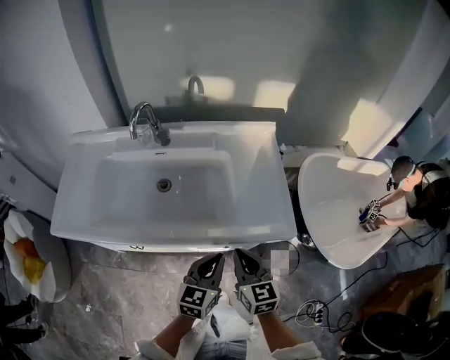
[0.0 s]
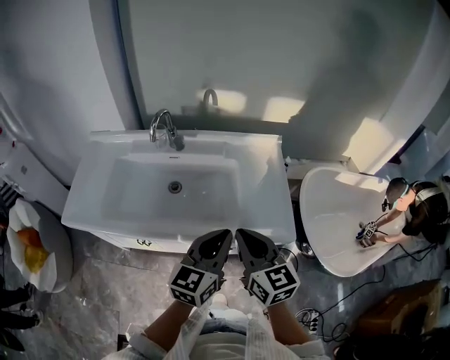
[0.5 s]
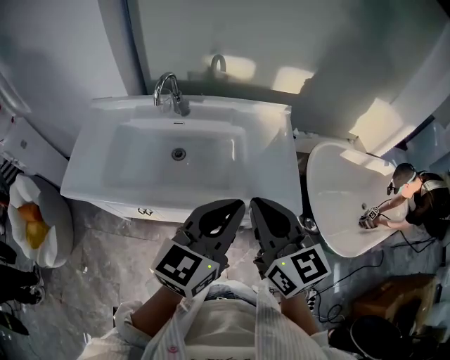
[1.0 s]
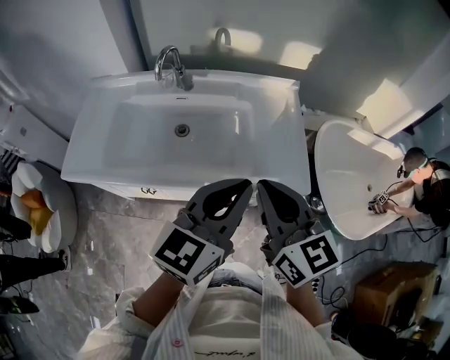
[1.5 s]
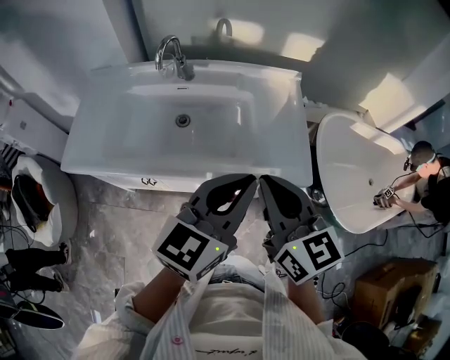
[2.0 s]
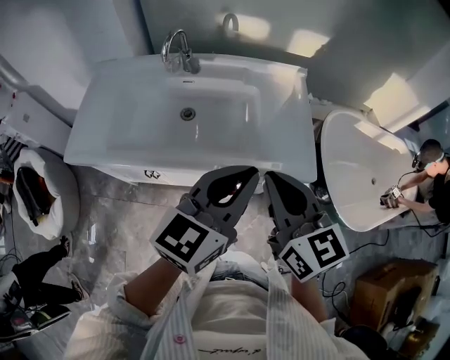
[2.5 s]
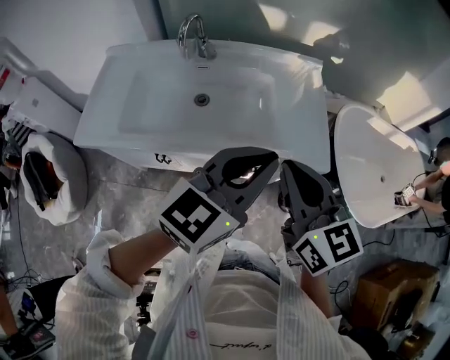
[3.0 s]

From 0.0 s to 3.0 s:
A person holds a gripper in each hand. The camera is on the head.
From 0.0 s to 1.5 s: The grippers both shift upward by some 20 cm.
From 1.5 s to 3.0 s: There are only small adjustments of the grippers.

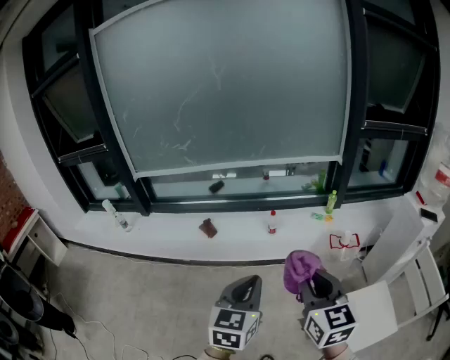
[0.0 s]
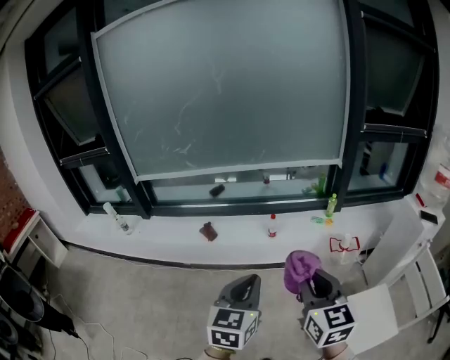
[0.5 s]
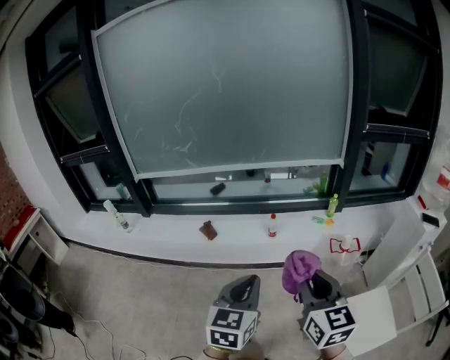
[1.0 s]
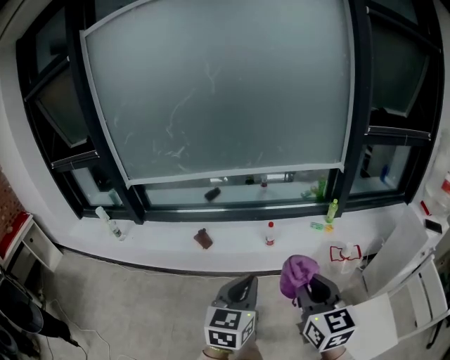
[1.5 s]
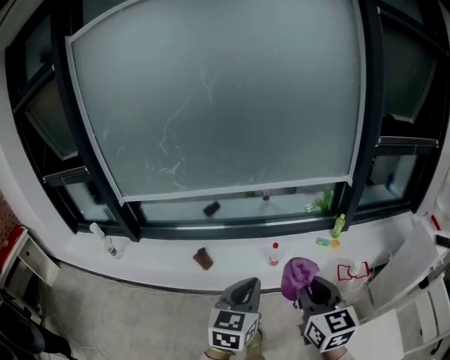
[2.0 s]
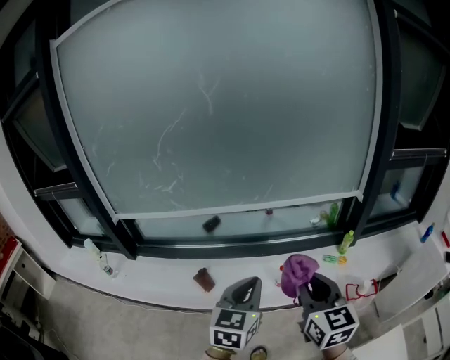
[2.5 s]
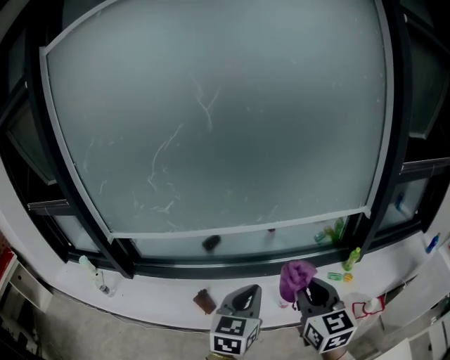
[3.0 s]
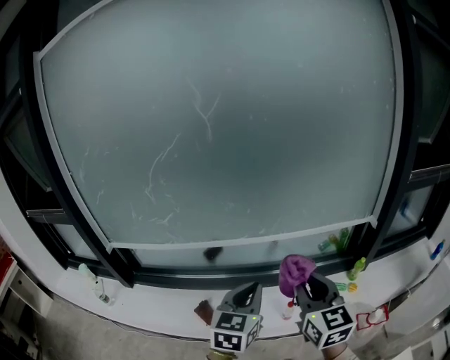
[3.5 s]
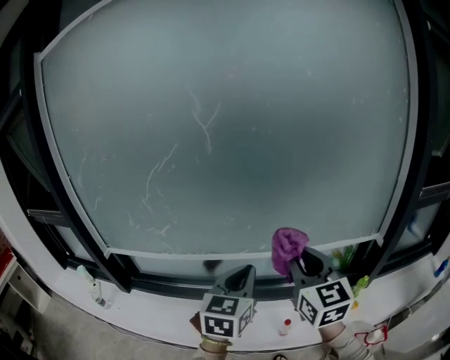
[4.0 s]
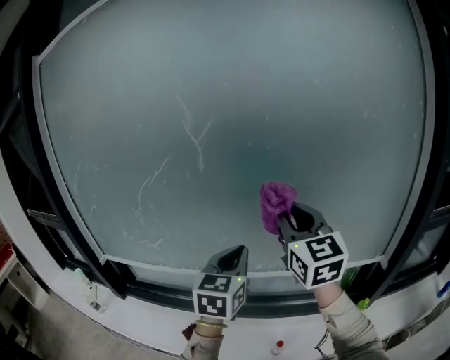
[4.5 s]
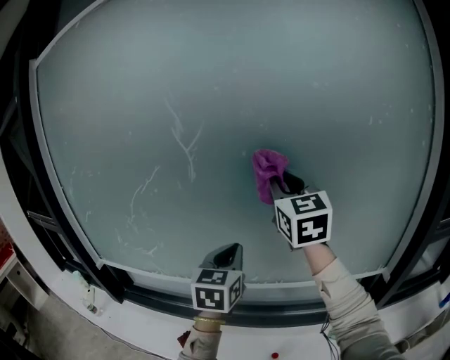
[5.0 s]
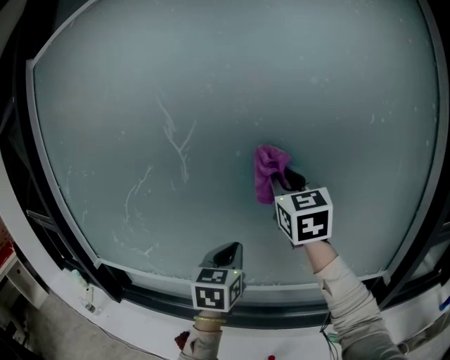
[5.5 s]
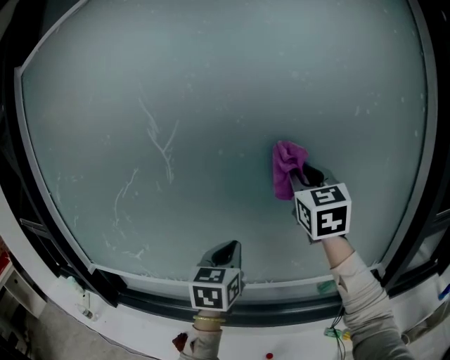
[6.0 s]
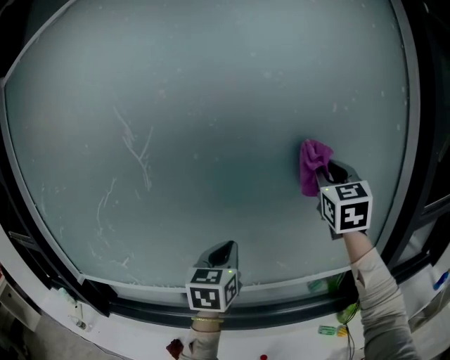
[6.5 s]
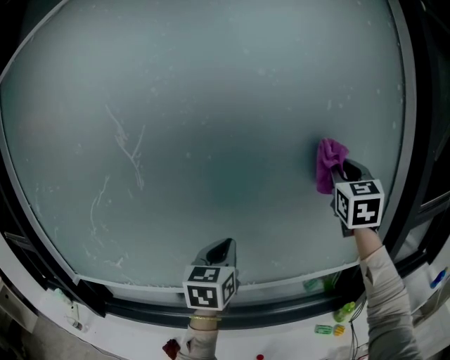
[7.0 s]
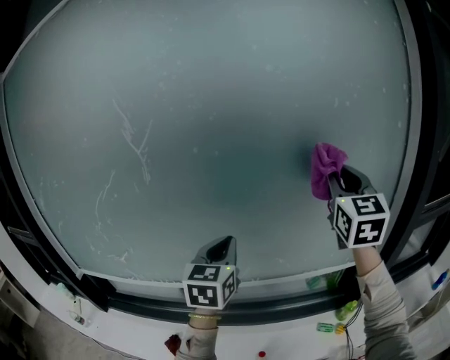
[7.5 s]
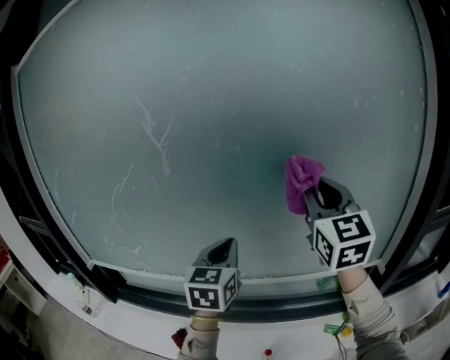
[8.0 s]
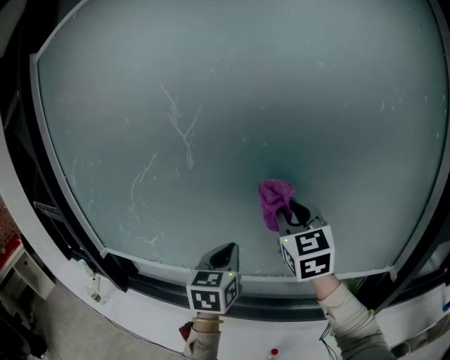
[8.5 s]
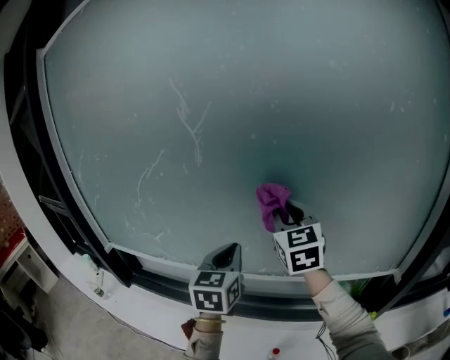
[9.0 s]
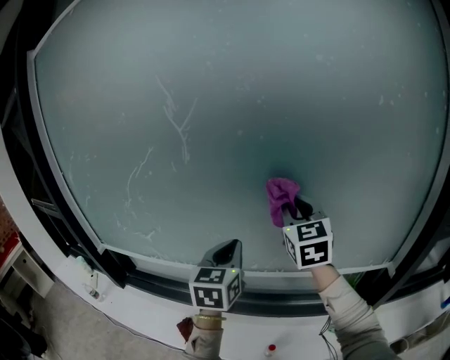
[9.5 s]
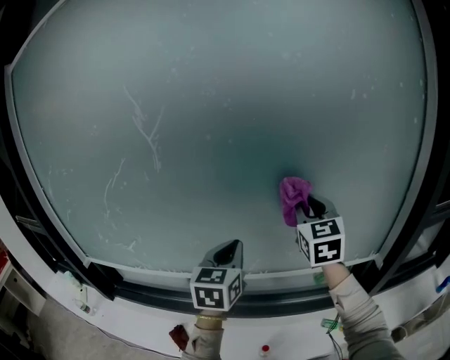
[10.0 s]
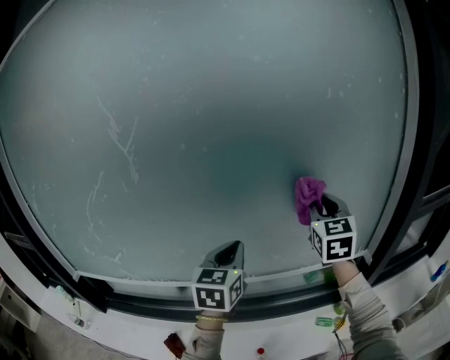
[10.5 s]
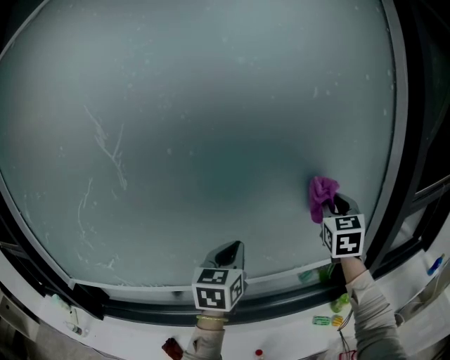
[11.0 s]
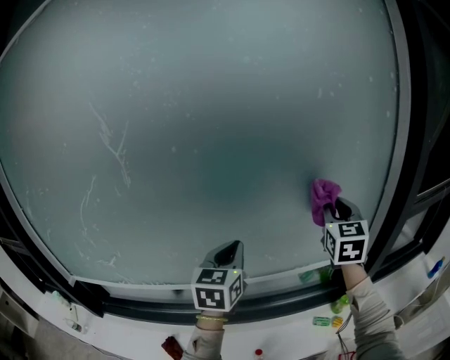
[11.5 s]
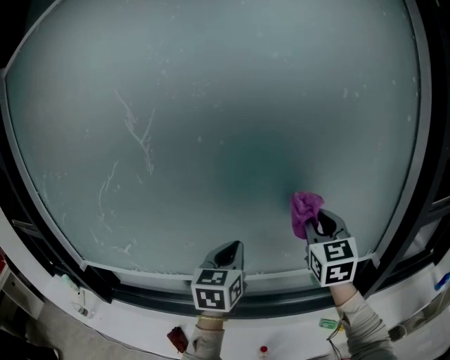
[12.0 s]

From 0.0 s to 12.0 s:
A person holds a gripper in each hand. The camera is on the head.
From 0.0 s to 2.0 s: The two grippers go about 20 cm forward.
From 2.0 s to 4.0 s: Both grippers are carried forward, about 40 cm.
From 4.0 s to 6.0 s: The right gripper goes roughly 35 cm forward, upward and to the right; the left gripper is displaced forward by about 20 cm.
From 6.0 s to 8.0 s: The right gripper heads backward, covering approximately 5 cm, and goes to the right and returns, some 20 cm each way.
From 8.0 s to 10.0 s: The right gripper travels downward and forward by about 10 cm, and reaches some 15 cm to the left, then returns; the left gripper goes to the left and returns, some 5 cm each way.
From 10.0 s to 12.0 s: The right gripper goes to the right and returns, approximately 15 cm each way.

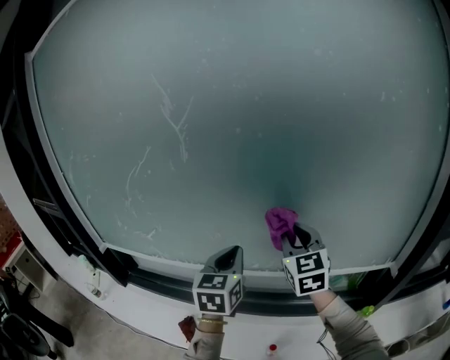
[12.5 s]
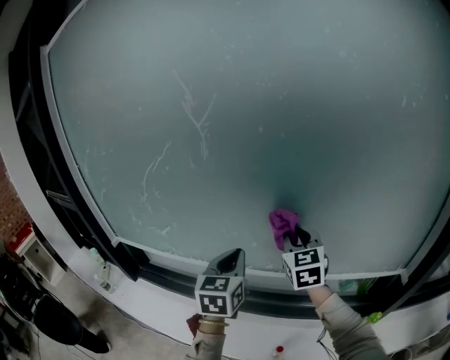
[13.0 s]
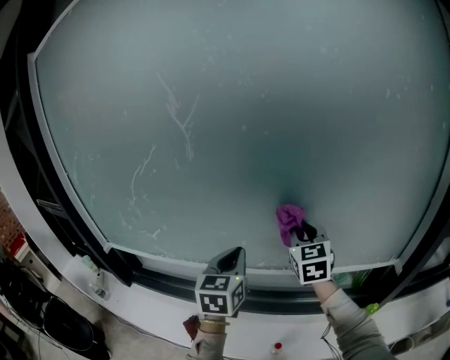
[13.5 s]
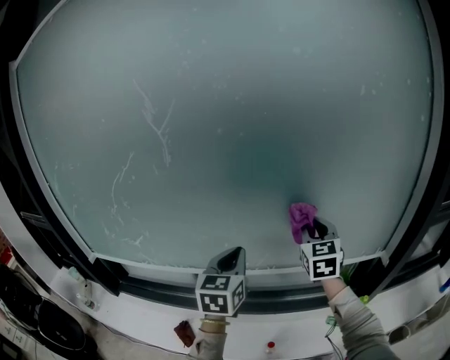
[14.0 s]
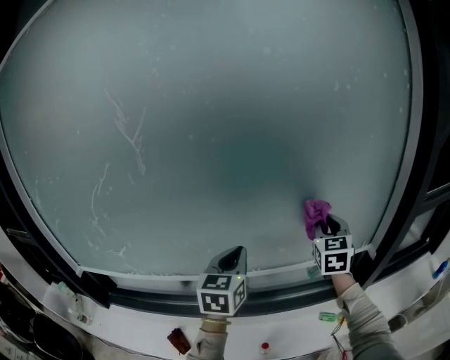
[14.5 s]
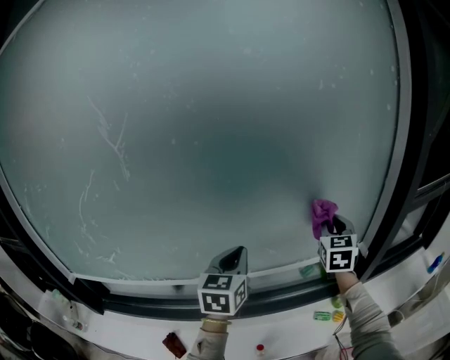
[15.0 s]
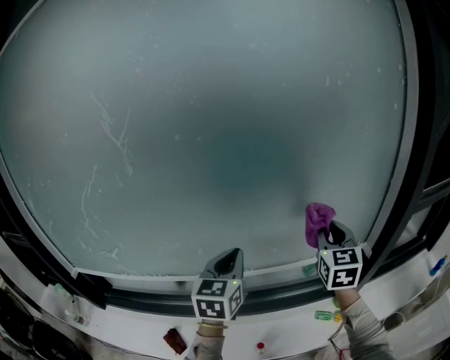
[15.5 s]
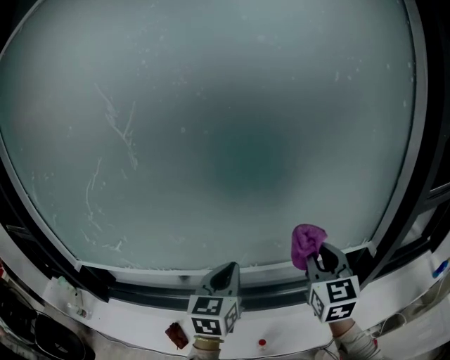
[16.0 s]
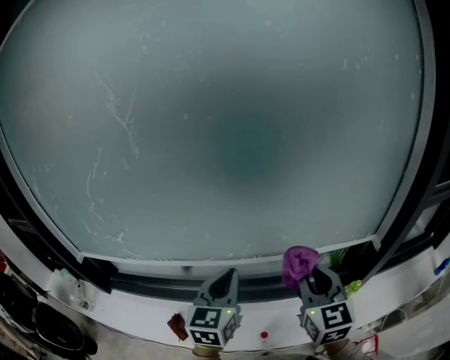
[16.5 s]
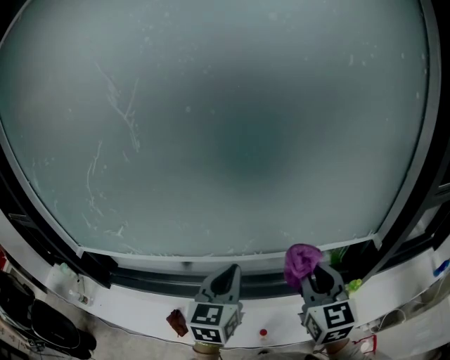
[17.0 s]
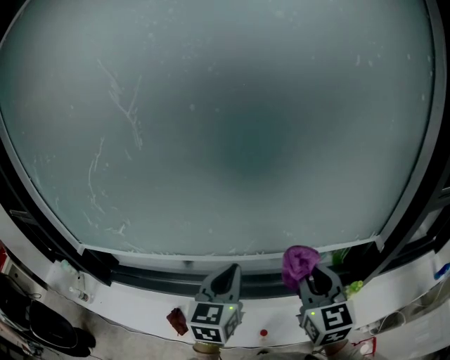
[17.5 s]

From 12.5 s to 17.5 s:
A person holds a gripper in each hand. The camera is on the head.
From 12.5 s to 15.0 s: The right gripper changes place by about 25 cm, and swivels approximately 30 degrees, while the left gripper ends up some 15 cm from where it was.
From 15.0 s to 17.5 s: The right gripper moves backward and to the left, roughly 20 cm, and swivels about 30 degrees. Meanwhile the left gripper is displaced backward by approximately 10 cm.

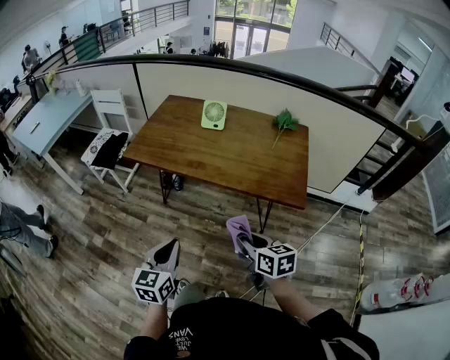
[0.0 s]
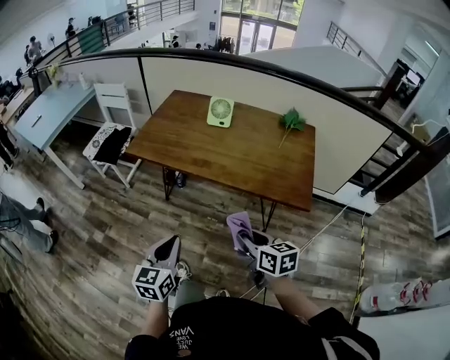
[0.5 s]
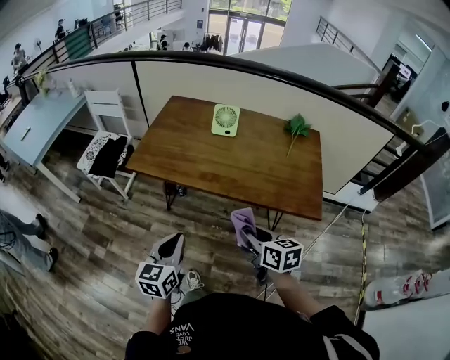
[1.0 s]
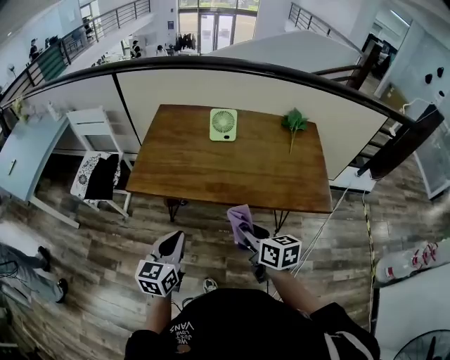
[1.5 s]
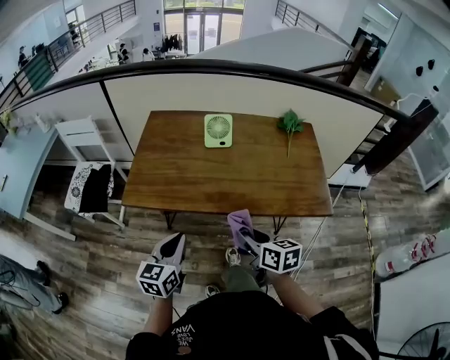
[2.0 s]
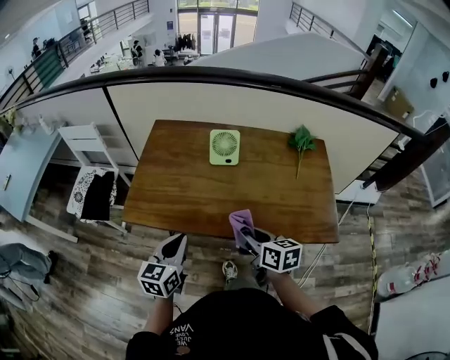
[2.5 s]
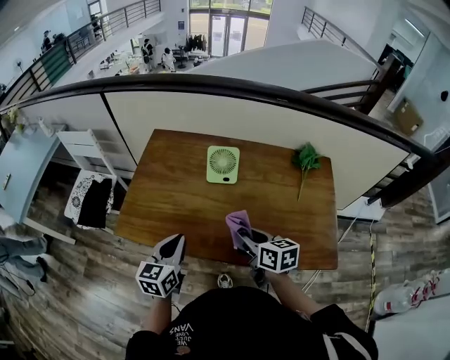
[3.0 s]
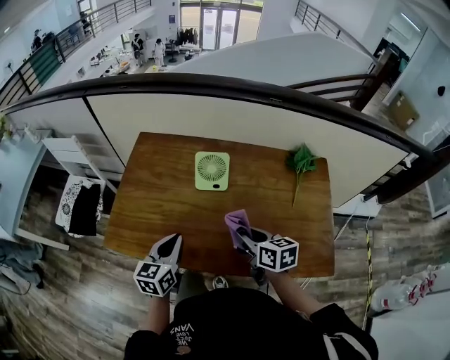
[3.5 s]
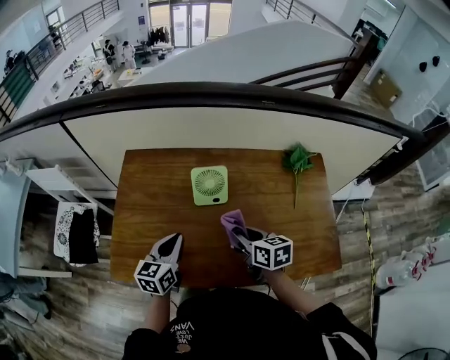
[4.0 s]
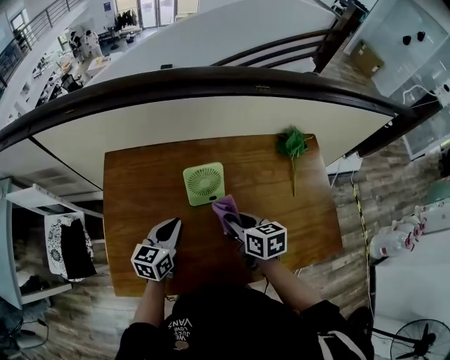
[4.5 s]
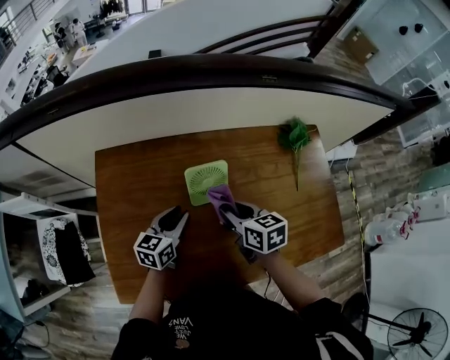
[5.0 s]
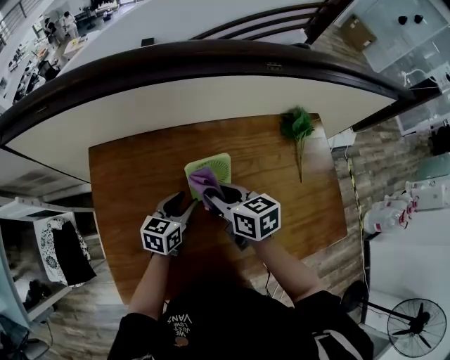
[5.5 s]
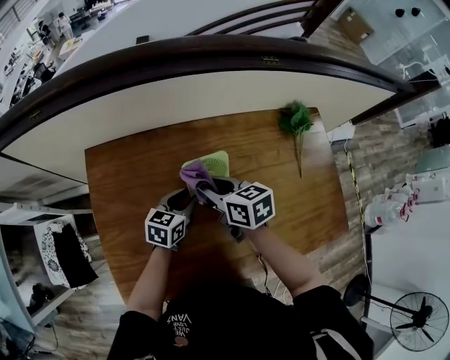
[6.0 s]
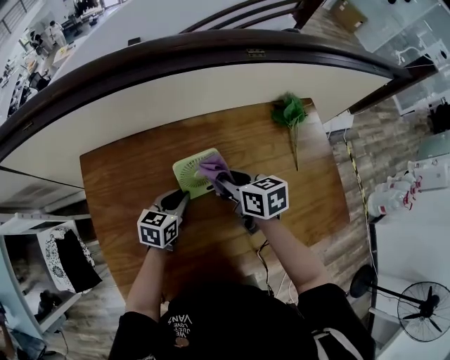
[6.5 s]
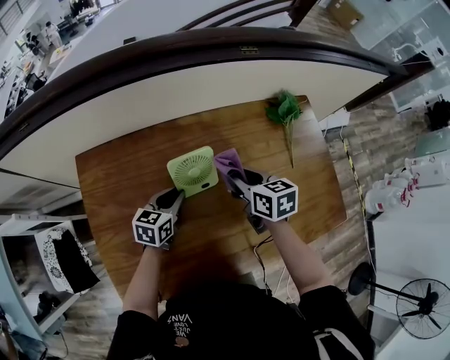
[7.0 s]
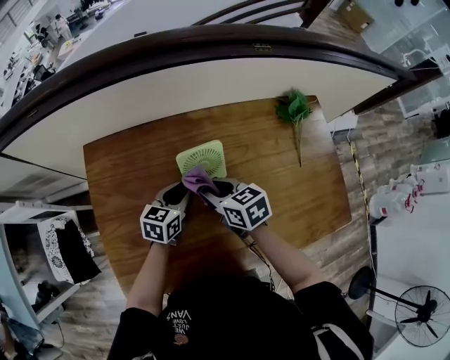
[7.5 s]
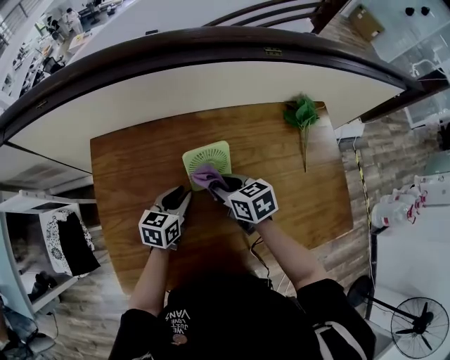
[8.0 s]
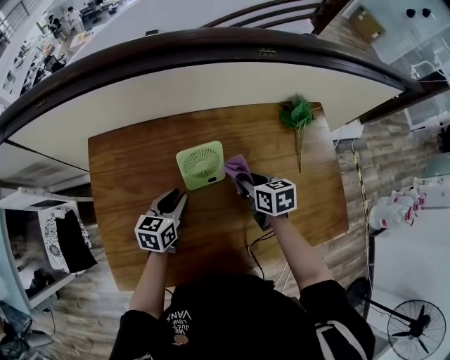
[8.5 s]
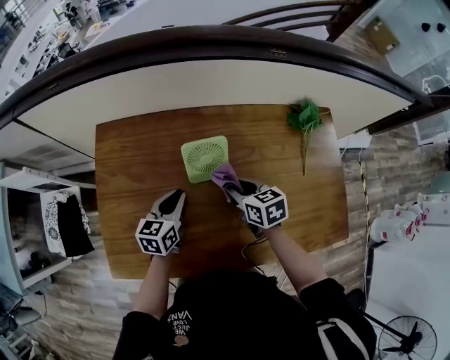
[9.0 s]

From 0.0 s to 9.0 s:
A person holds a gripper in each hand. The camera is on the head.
From 0.0 s to 2.0 s: Both grippers travel together forward and to the left, some 25 cm.
From 2.0 s to 4.5 s: Both grippers move forward, roughly 40 cm.
From 4.5 s to 7.0 s: The left gripper shifts roughly 10 cm downward and forward, and opens and closes again; the right gripper travels forward by approximately 10 cm, and moves some 10 cm to the left and comes back.
From 7.0 s to 9.0 s: The right gripper goes left and right, some 15 cm each way, reversing 2 times, while the left gripper heads backward, covering roughly 5 cm.
